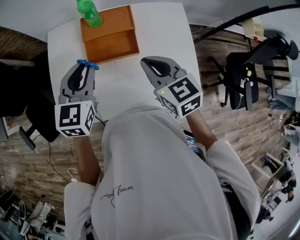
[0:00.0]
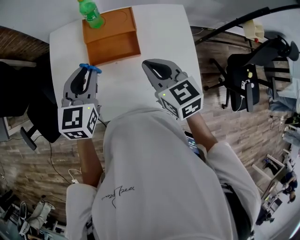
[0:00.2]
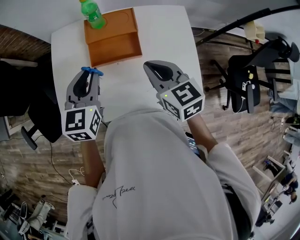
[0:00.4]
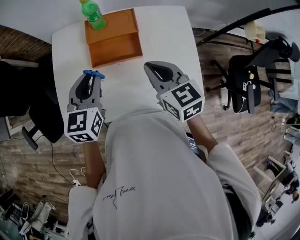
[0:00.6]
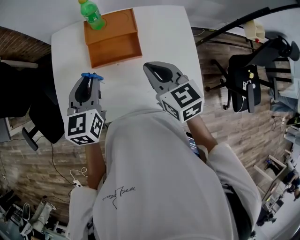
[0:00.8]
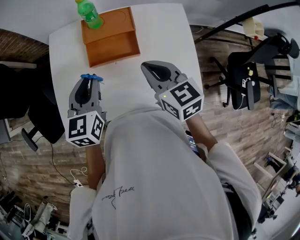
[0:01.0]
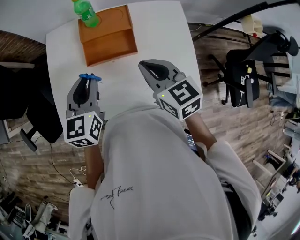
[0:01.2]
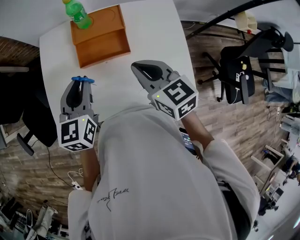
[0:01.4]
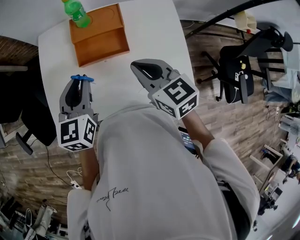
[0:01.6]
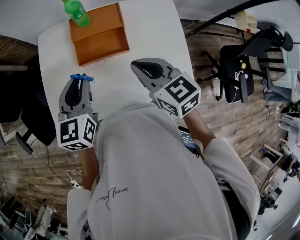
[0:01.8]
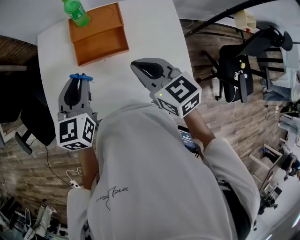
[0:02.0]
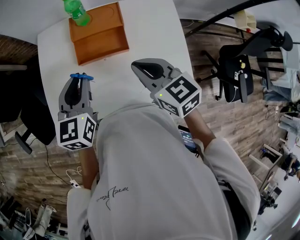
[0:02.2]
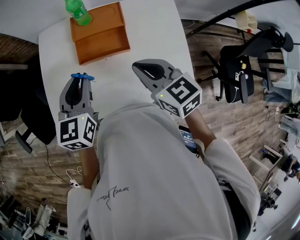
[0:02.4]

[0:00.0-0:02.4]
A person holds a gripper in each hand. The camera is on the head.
0:00.0 to 0:02.4: There are only small adjustments of the grippers.

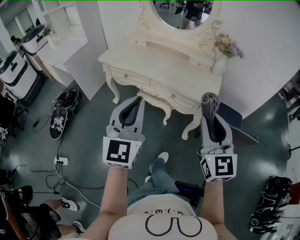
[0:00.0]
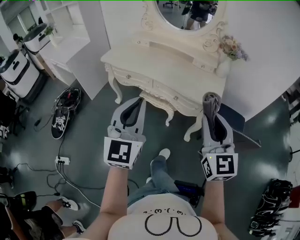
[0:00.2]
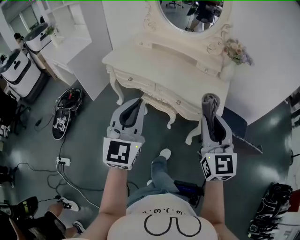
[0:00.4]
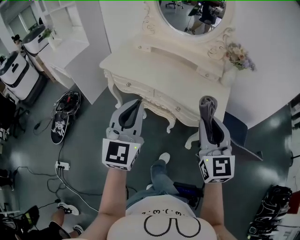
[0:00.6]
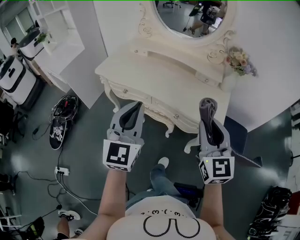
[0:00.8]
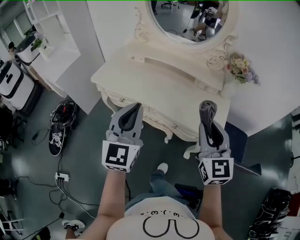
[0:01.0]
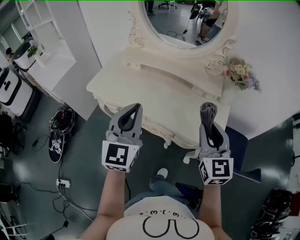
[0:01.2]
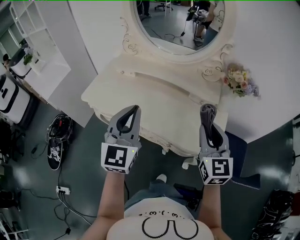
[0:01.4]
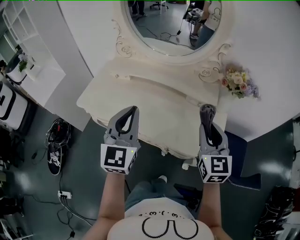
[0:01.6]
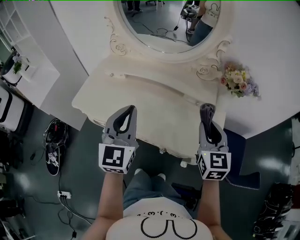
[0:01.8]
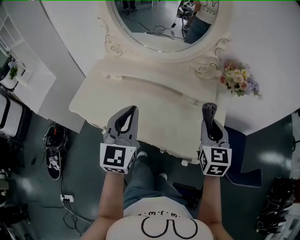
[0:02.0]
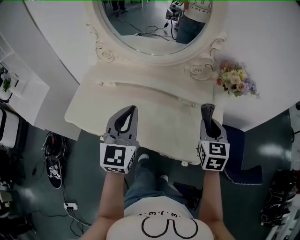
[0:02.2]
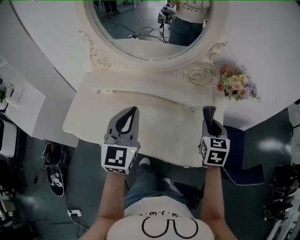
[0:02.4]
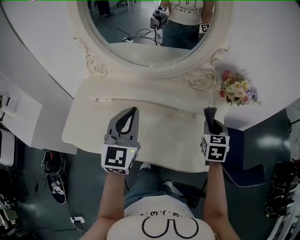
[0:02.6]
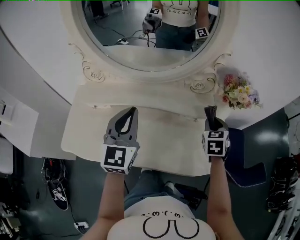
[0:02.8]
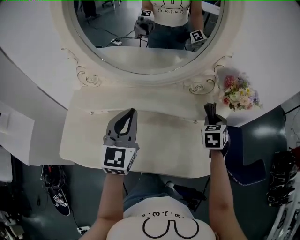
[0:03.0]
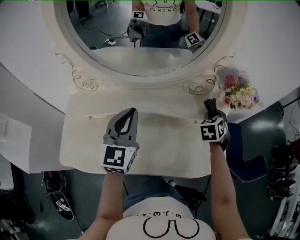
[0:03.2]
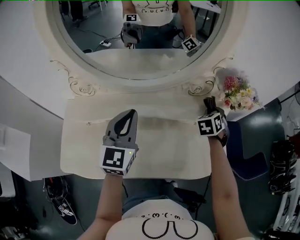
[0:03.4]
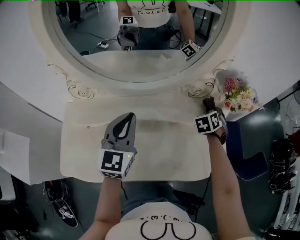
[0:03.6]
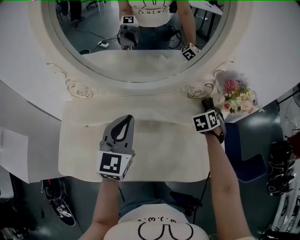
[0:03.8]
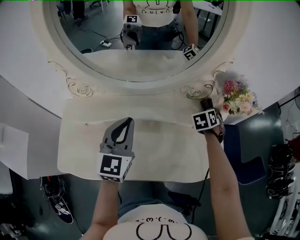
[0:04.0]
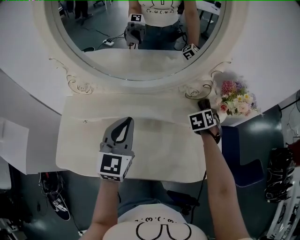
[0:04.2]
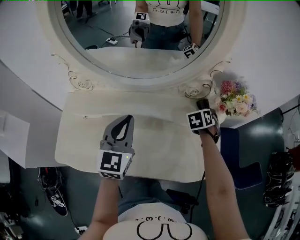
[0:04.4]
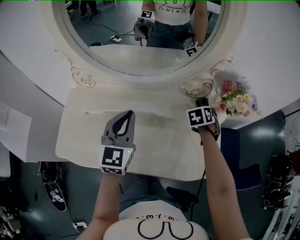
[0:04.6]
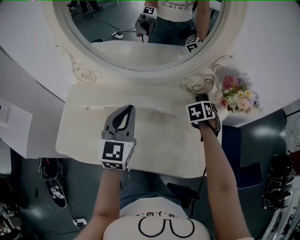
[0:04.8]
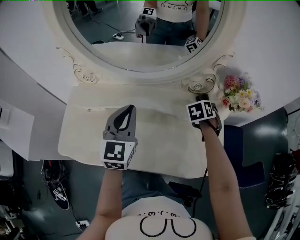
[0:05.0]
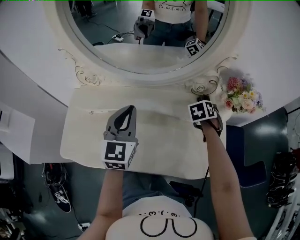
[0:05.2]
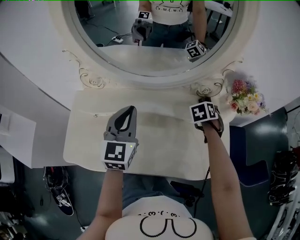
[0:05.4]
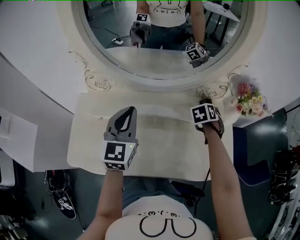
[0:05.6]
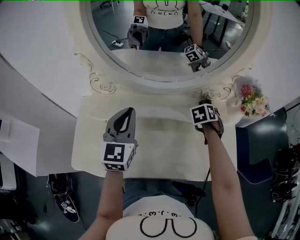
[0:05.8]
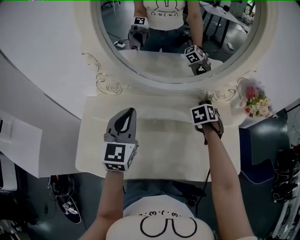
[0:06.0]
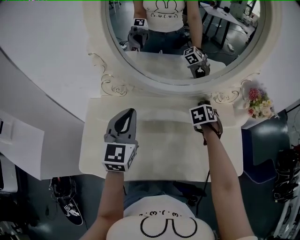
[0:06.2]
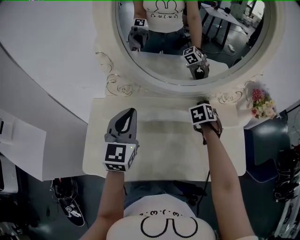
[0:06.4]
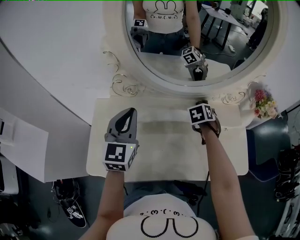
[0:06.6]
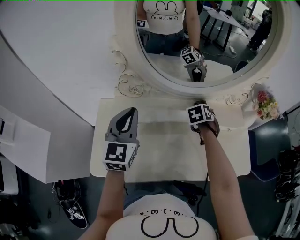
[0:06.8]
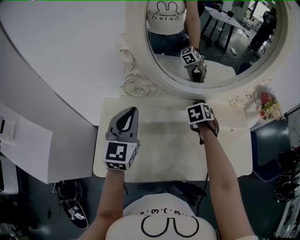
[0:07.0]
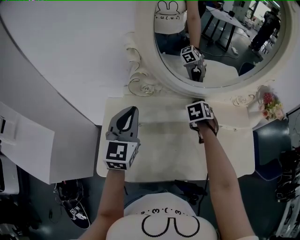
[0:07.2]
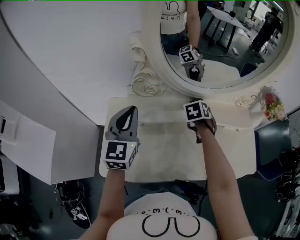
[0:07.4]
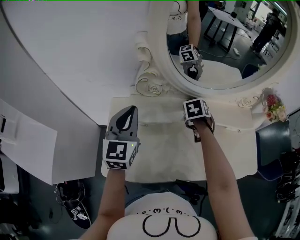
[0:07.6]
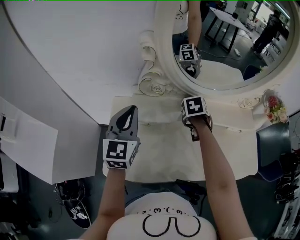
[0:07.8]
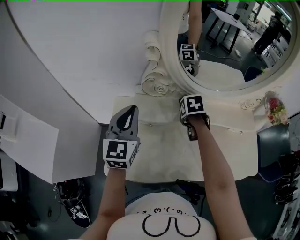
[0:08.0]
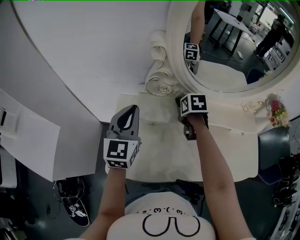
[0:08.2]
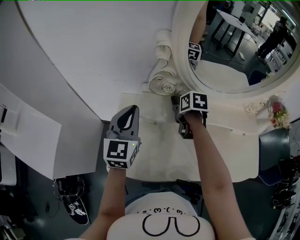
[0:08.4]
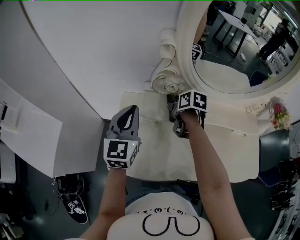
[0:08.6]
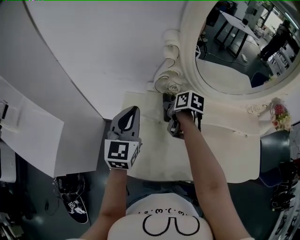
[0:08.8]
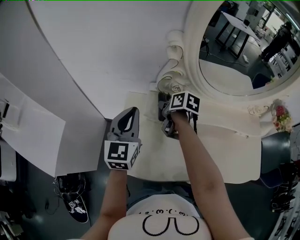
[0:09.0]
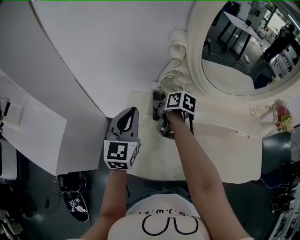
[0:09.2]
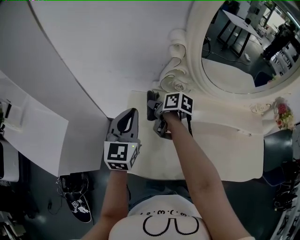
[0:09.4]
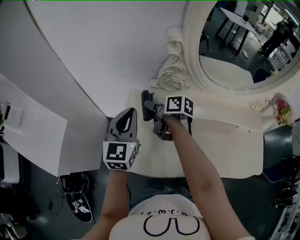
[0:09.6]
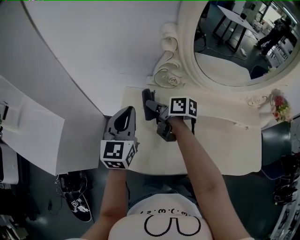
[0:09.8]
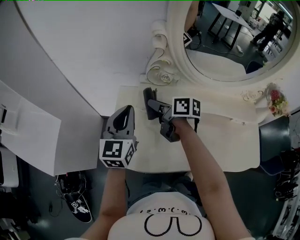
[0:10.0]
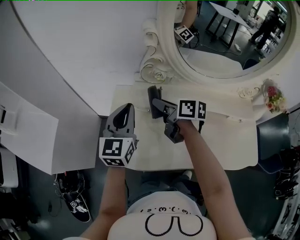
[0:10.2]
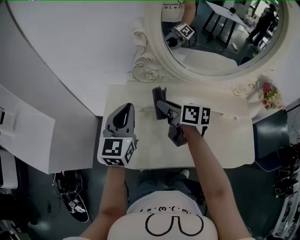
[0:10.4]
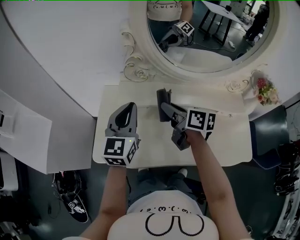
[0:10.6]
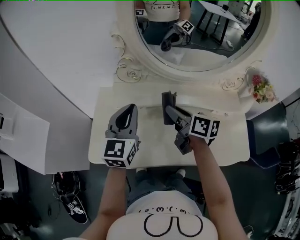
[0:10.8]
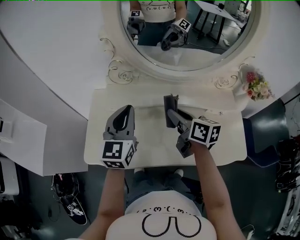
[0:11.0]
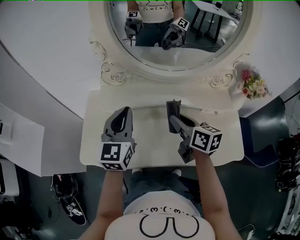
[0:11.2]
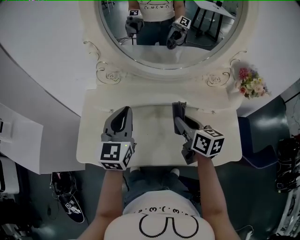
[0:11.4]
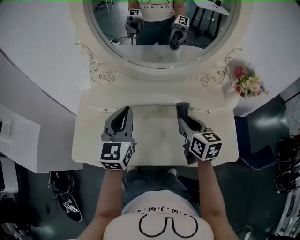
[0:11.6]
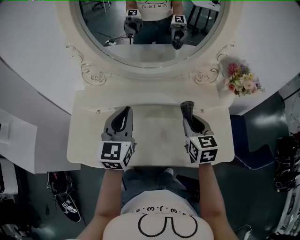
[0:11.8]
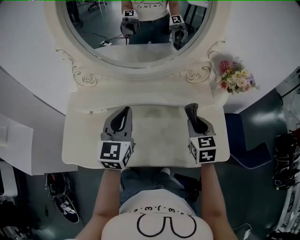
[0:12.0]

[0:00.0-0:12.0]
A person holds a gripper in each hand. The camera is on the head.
0:00.0 to 0:01.6: The grippers both shift forward by some 40 cm.
0:01.6 to 0:03.0: The right gripper moves about 25 cm, and angles its fingers downward, by some 30 degrees, while the left gripper shifts by roughly 25 cm.
0:03.0 to 0:04.4: The right gripper is displaced forward and downward by some 10 cm.
0:04.4 to 0:06.0: The two grippers go about 15 cm to the left.
0:06.0 to 0:07.6: Both grippers move to the left, roughly 20 cm.
0:07.6 to 0:09.0: The right gripper ends up roughly 25 cm from where it was, and rotates about 50 degrees, while the left gripper ends up approximately 10 cm from where it was.
0:09.0 to 0:10.4: The left gripper travels to the right and backward by about 10 cm; the right gripper is displaced backward, upward and to the right by about 15 cm, and turns by some 30 degrees.
0:10.4 to 0:12.0: The two grippers go approximately 35 cm to the right. The right gripper turns by approximately 60 degrees.

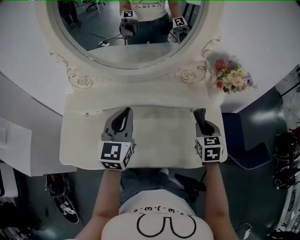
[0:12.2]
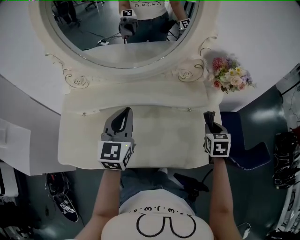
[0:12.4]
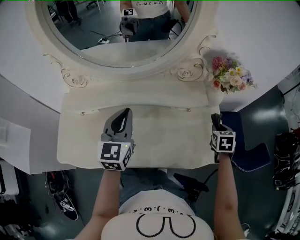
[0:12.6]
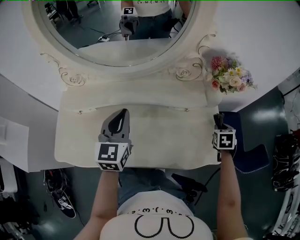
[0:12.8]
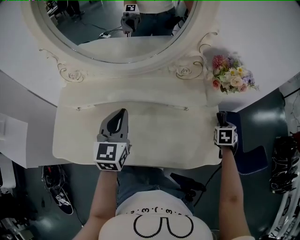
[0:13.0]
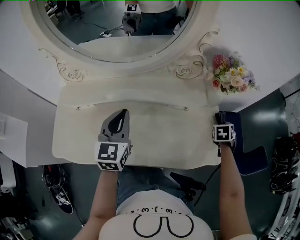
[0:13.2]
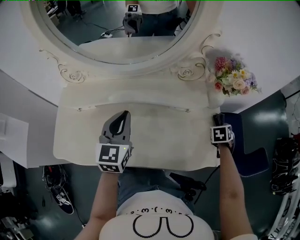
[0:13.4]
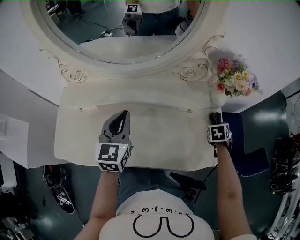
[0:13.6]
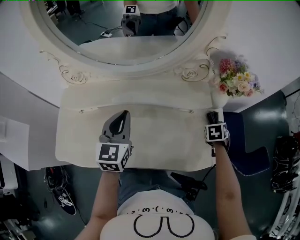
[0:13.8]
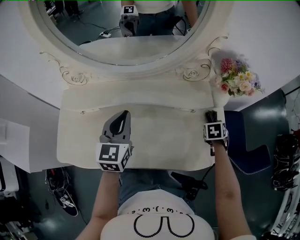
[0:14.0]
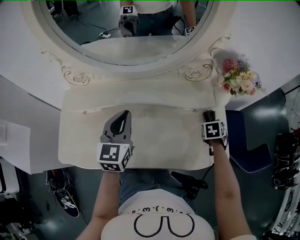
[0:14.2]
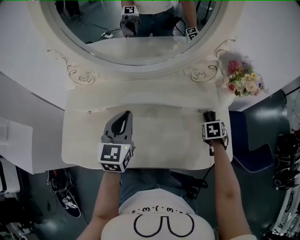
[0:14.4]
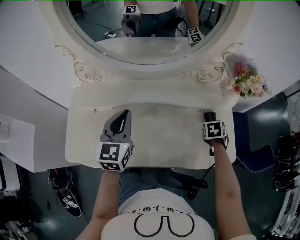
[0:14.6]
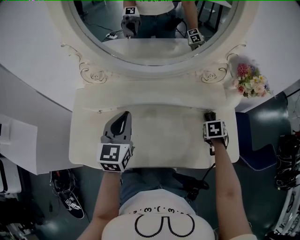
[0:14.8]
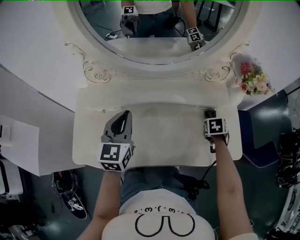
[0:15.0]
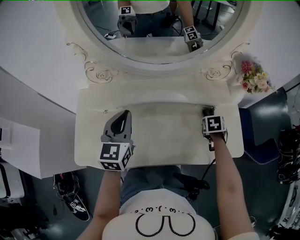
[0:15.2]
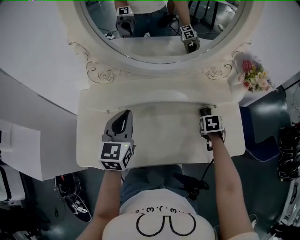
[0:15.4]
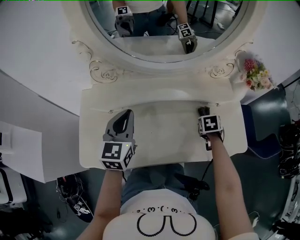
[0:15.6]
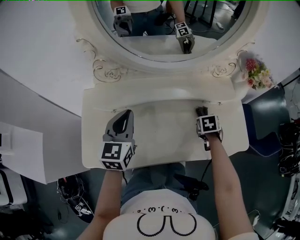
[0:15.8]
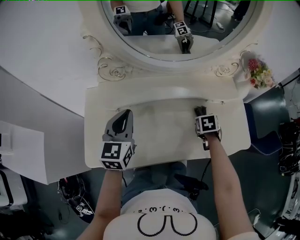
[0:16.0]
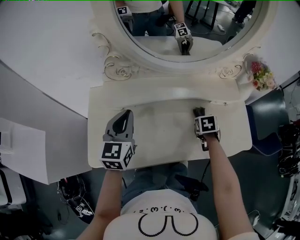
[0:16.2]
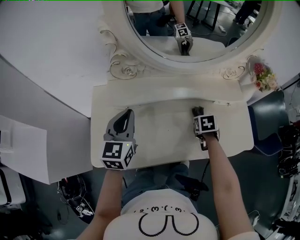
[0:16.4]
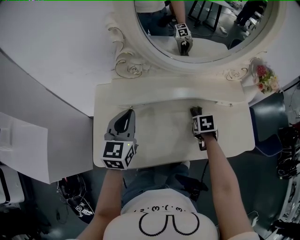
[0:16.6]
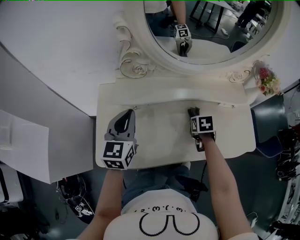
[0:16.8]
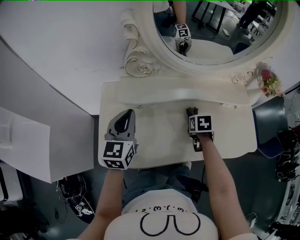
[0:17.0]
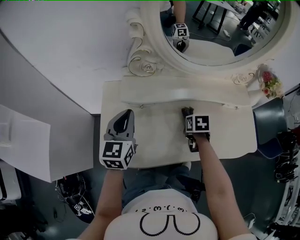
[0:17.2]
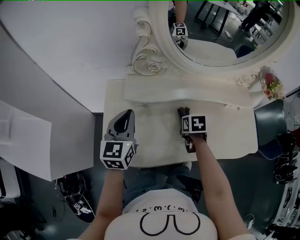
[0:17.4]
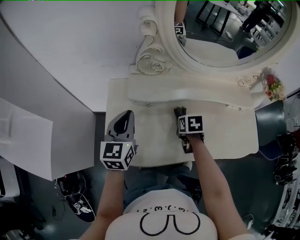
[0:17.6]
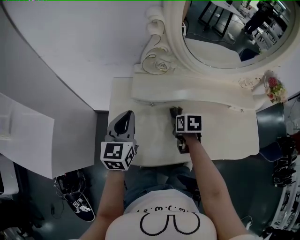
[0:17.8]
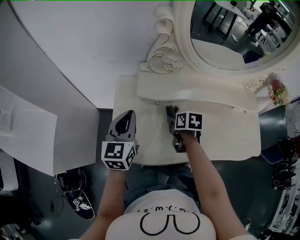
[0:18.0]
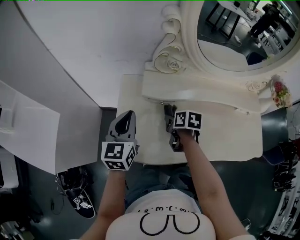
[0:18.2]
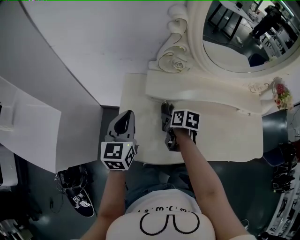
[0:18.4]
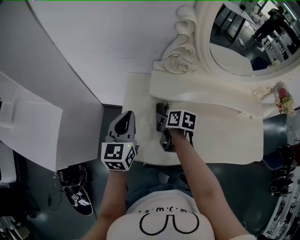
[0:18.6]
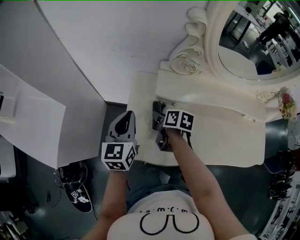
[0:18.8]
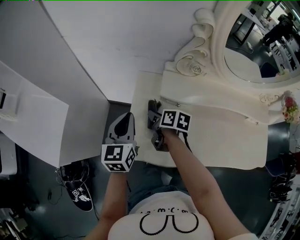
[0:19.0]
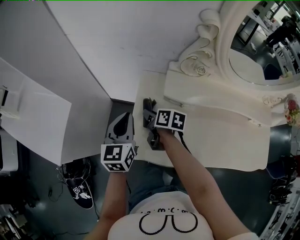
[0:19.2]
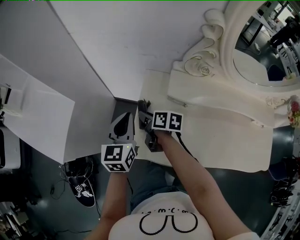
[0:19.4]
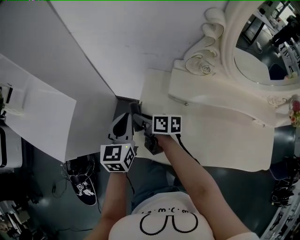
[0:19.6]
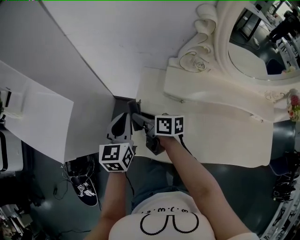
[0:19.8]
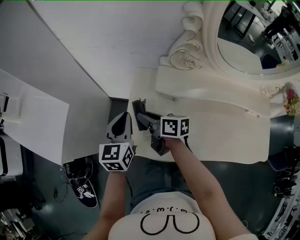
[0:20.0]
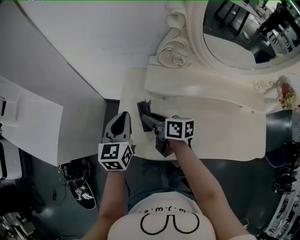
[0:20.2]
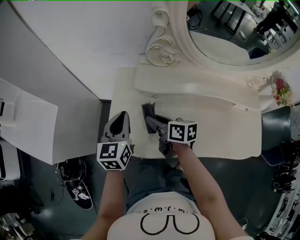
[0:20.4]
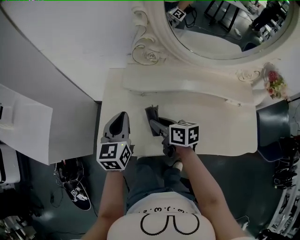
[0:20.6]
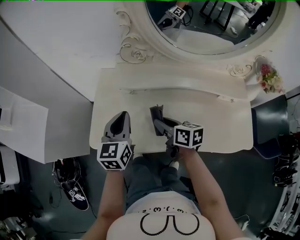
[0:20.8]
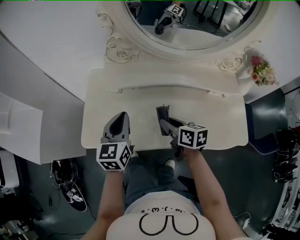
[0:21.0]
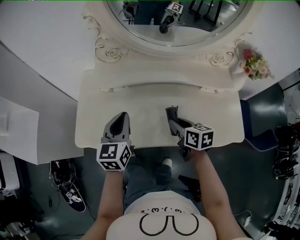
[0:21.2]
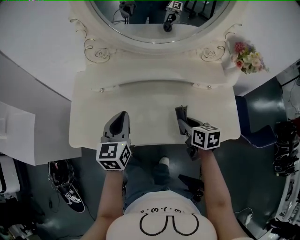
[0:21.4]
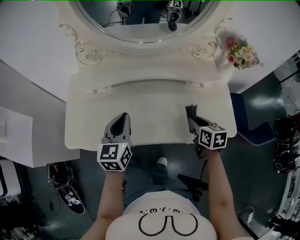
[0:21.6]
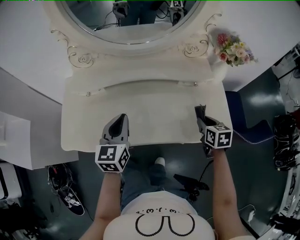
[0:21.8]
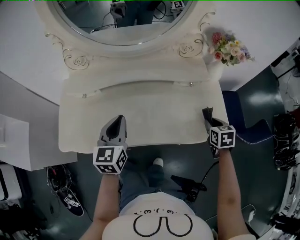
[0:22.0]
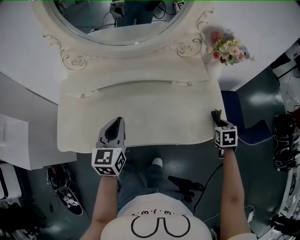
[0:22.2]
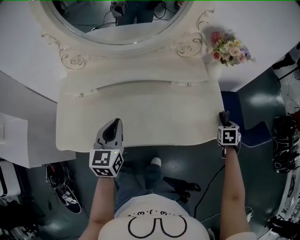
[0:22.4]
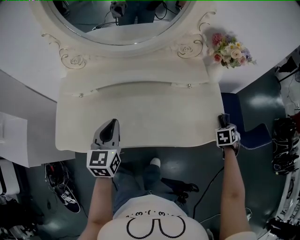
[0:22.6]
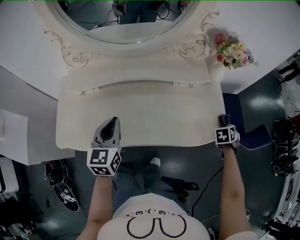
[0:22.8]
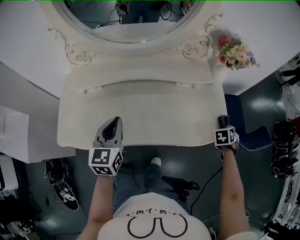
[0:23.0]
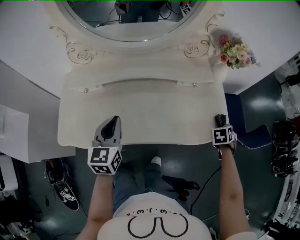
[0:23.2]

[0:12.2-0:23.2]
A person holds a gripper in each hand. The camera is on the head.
0:12.2 to 0:13.8: The right gripper heads downward, to the right and forward, covering roughly 15 cm, and swivels approximately 30 degrees.
0:13.8 to 0:15.4: The right gripper is displaced to the left and backward by approximately 20 cm. The left gripper heads to the left, covering about 15 cm.
0:15.4 to 0:17.0: The grippers both shift to the left by approximately 20 cm.
0:17.0 to 0:18.4: The left gripper shifts roughly 15 cm to the left, while the right gripper goes roughly 25 cm to the left, and rotates about 30 degrees.
0:18.4 to 0:20.0: The right gripper is displaced to the left by about 15 cm, and points its fingers roughly 30 degrees further upward. The left gripper goes about 5 cm to the left.
0:20.0 to 0:21.6: The left gripper changes place by approximately 40 cm. Meanwhile the right gripper ends up roughly 60 cm from where it was, and turns by about 50 degrees.
0:21.6 to 0:23.2: The right gripper shifts by some 25 cm, and swivels roughly 50 degrees.
